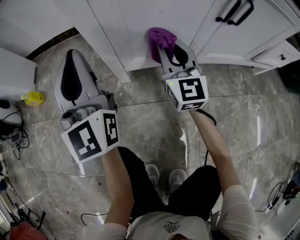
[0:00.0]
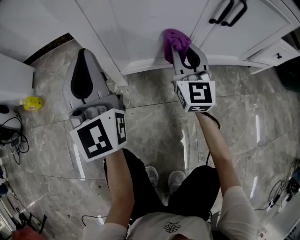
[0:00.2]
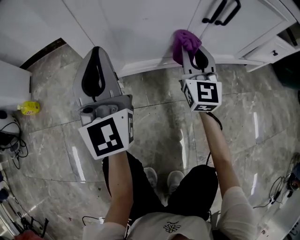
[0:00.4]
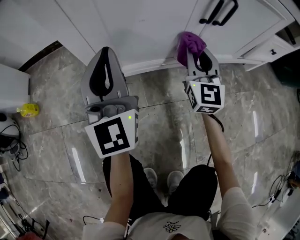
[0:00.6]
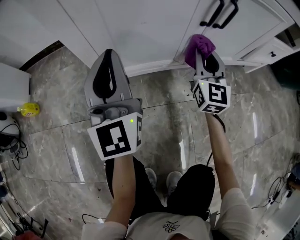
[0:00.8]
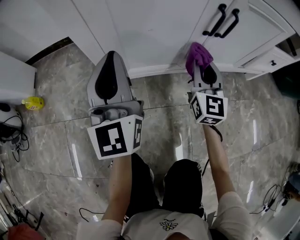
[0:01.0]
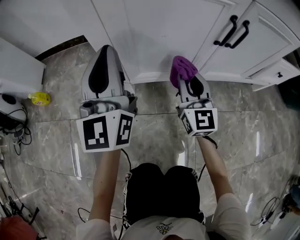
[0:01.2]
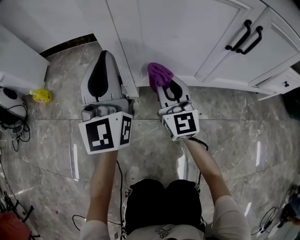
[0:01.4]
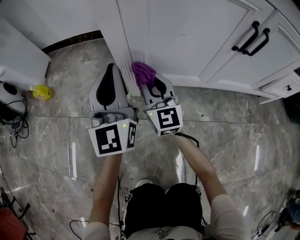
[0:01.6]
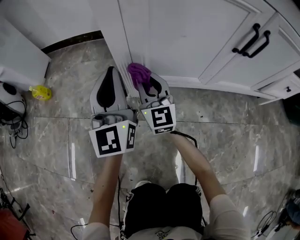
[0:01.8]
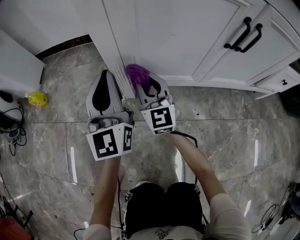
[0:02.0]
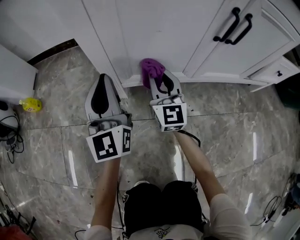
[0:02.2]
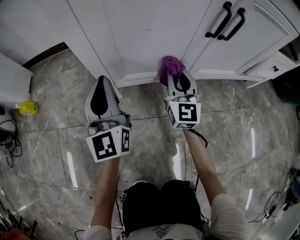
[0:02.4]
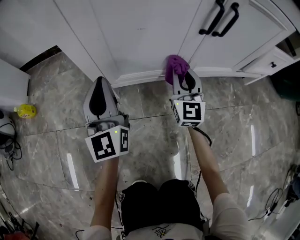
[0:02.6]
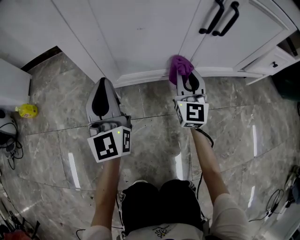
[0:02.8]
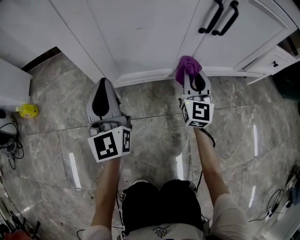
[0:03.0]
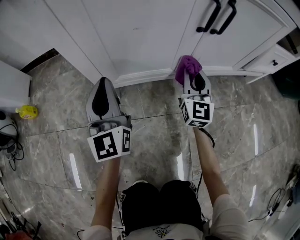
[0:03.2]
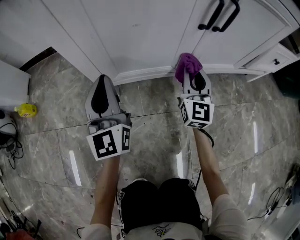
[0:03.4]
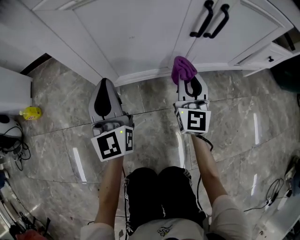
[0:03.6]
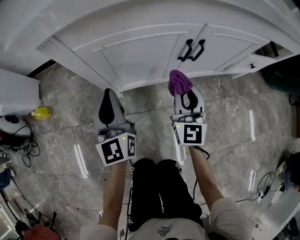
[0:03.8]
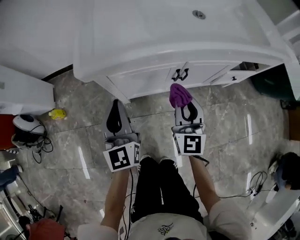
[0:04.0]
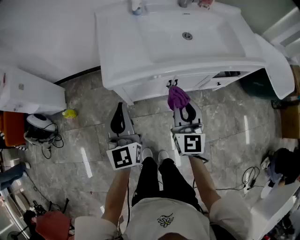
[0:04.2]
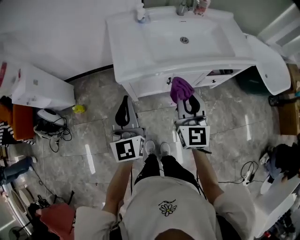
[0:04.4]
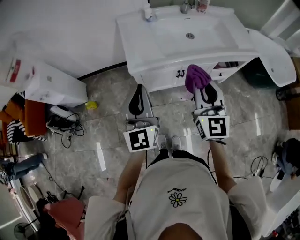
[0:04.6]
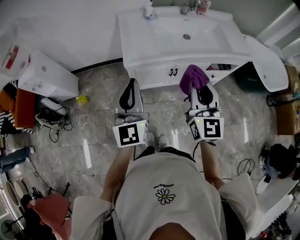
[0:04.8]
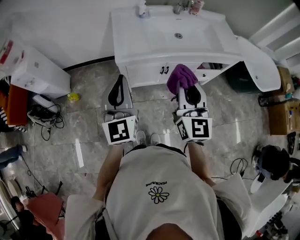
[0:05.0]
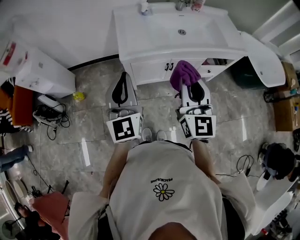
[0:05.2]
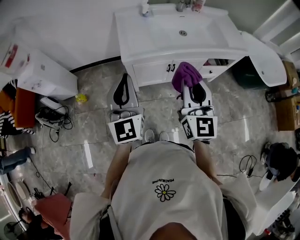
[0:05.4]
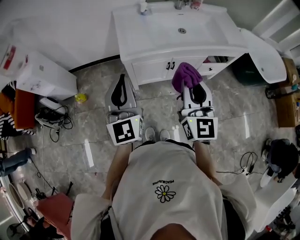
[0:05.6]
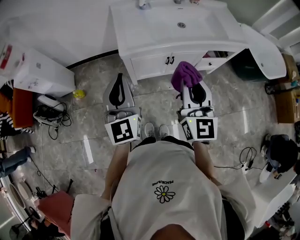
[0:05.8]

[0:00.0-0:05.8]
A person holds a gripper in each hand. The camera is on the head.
0:00.0 to 0:01.4: The right gripper reaches roughly 15 cm to the right, then returns. The left gripper moves roughly 10 cm to the right and comes back.
0:01.4 to 0:02.8: The left gripper is displaced downward by some 10 cm. Meanwhile the right gripper goes approximately 15 cm to the right, and rotates approximately 20 degrees.
0:02.8 to 0:04.4: Both grippers move upward, about 70 cm.
0:04.4 to 0:05.8: The grippers both shift backward and upward by some 15 cm.

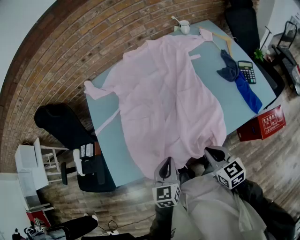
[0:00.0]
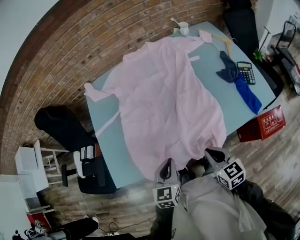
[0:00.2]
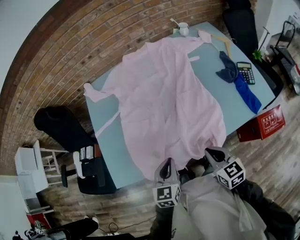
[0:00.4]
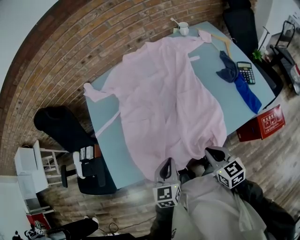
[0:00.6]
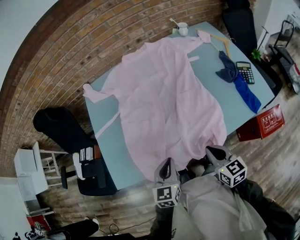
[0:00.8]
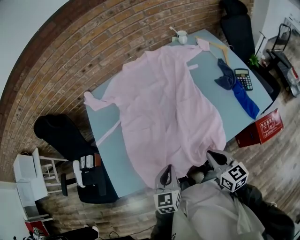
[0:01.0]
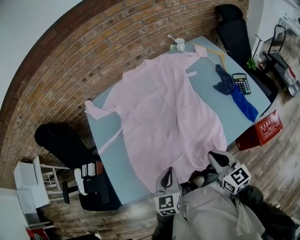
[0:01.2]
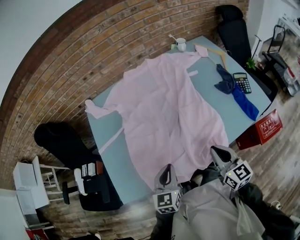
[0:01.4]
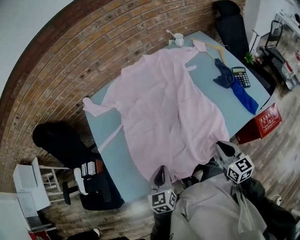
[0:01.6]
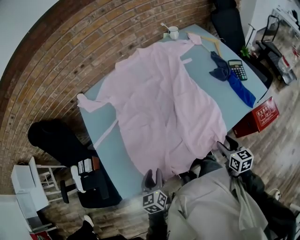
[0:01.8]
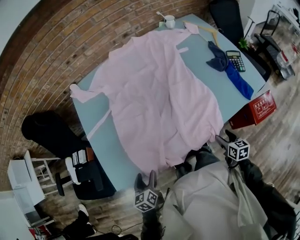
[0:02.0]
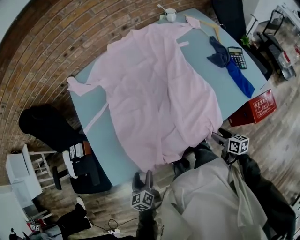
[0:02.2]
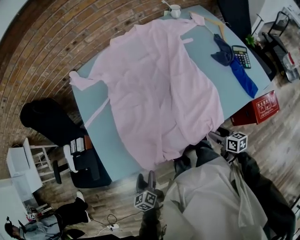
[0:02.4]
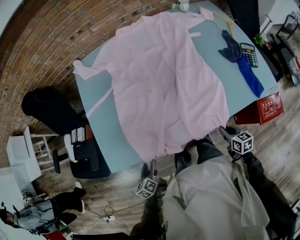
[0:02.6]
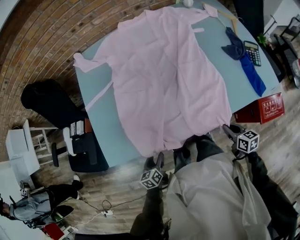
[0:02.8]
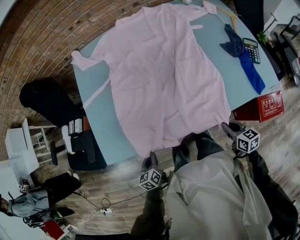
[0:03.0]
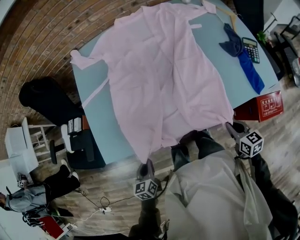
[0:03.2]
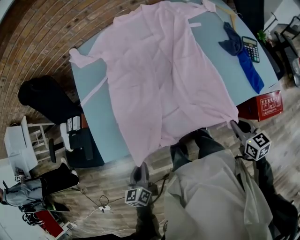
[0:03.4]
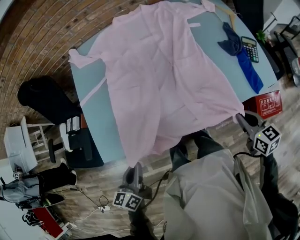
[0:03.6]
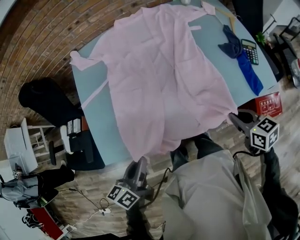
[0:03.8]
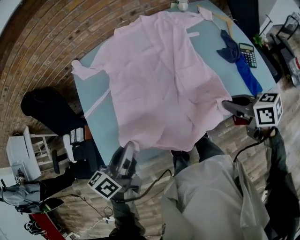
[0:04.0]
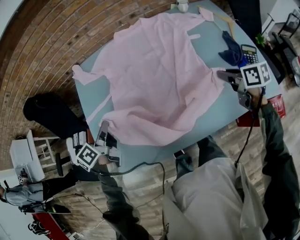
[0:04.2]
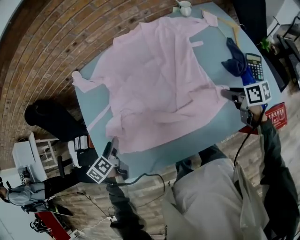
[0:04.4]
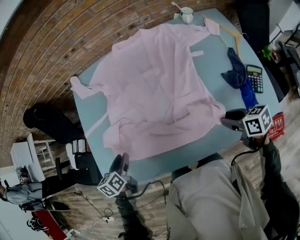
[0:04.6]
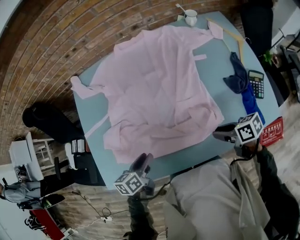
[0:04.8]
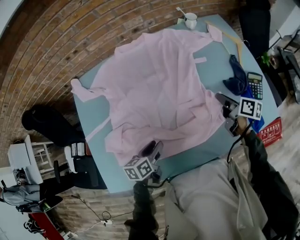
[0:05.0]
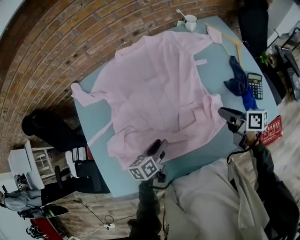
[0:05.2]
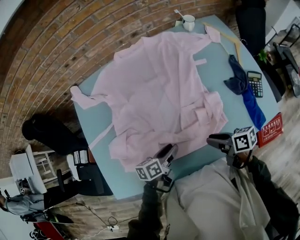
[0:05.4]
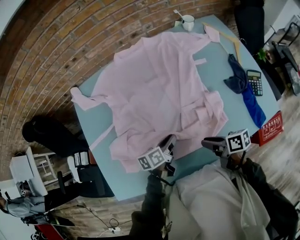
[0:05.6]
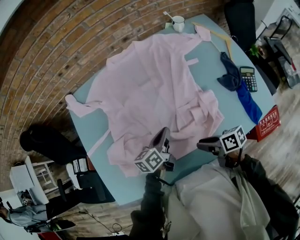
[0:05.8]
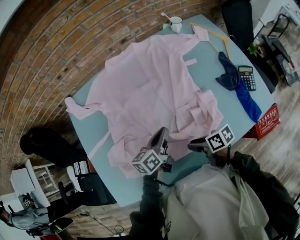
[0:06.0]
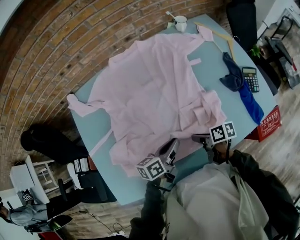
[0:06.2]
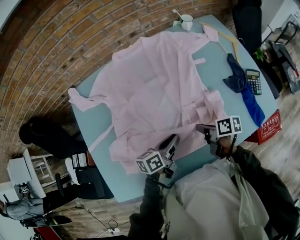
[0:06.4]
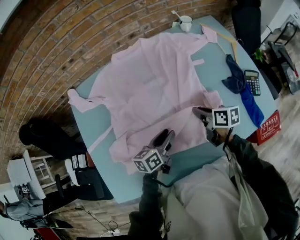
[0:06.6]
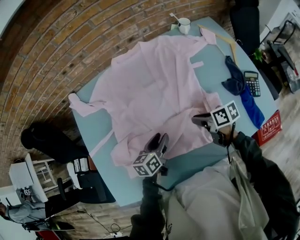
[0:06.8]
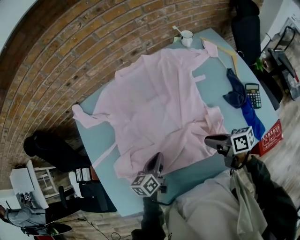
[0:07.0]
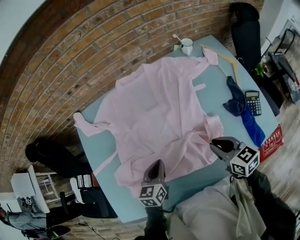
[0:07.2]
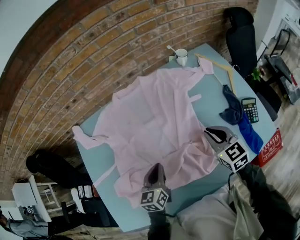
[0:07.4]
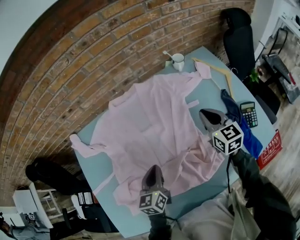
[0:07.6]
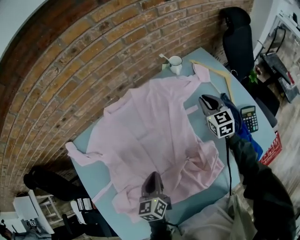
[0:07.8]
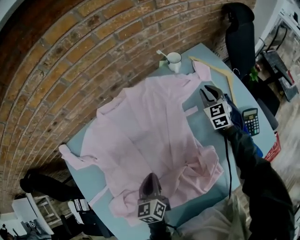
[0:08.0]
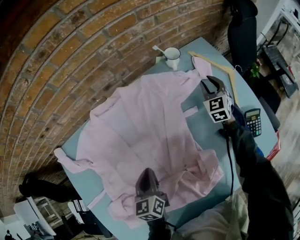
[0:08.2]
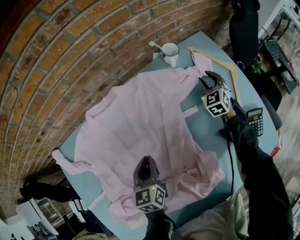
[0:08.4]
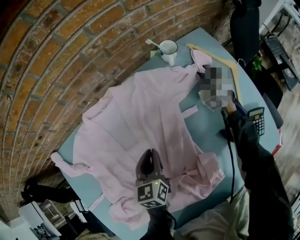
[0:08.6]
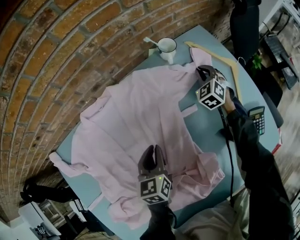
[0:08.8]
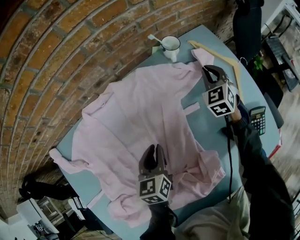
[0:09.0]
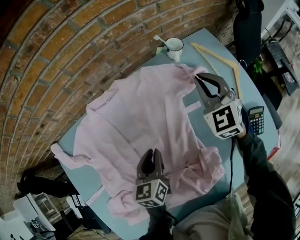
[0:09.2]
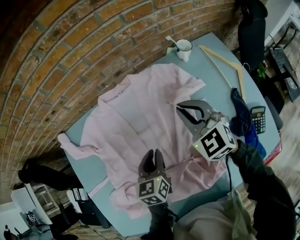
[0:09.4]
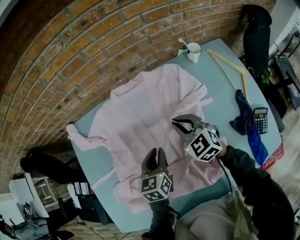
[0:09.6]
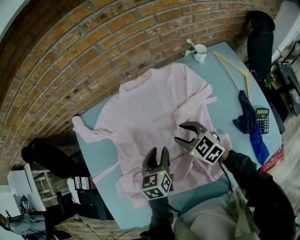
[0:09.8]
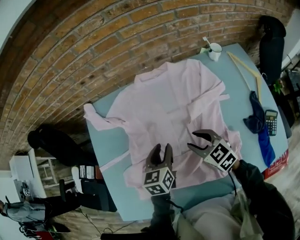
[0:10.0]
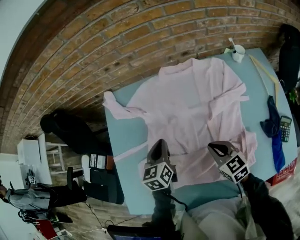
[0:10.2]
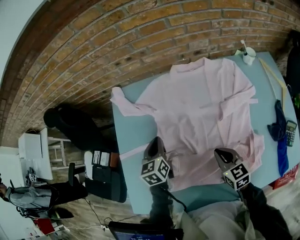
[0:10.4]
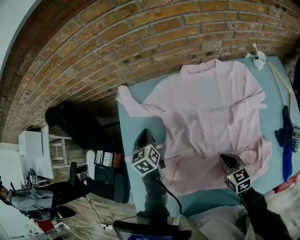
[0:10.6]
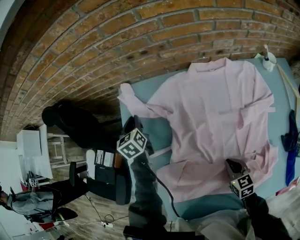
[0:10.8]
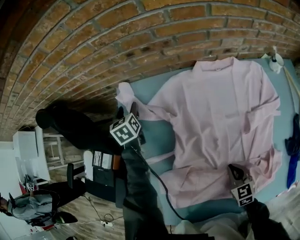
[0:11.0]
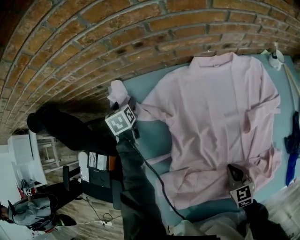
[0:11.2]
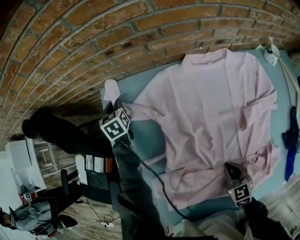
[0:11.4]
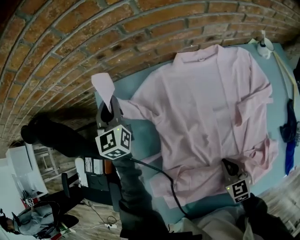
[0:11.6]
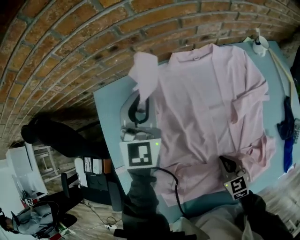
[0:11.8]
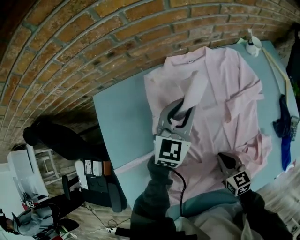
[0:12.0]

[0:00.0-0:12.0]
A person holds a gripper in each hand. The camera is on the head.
0:00.0 to 0:01.6: The left gripper travels to the left by some 5 cm.
0:01.6 to 0:03.0: The left gripper shifts roughly 25 cm downward, backward and to the left, changes its angle by approximately 30 degrees, and opens, then closes once more, while the right gripper goes about 15 cm downward, to the right and backward, changes its angle by some 30 degrees, and opens, then closes again.
0:03.0 to 0:04.4: The grippers both shift forward and upward by some 25 cm. The left gripper opens its fingers.
0:04.4 to 0:06.0: The left gripper moves about 30 cm, swivels about 40 degrees, and closes its fingers. The right gripper ends up roughly 20 cm from where it was.
0:06.0 to 0:07.6: The left gripper is displaced forward by some 5 cm, rotates approximately 30 degrees, and opens, then closes once more. Meanwhile the right gripper swings forward and backward, some 25 cm each way, with 2 reversals, turns by approximately 70 degrees, and closes.
0:07.6 to 0:09.0: The right gripper heads forward and downward, covering about 25 cm, rotates approximately 40 degrees, and opens, then closes again. Meanwhile the left gripper shifts about 20 cm forward.
0:09.0 to 0:10.4: The right gripper moves approximately 10 cm upward and comes back, rotates some 50 degrees, and opens, then closes again, while the left gripper changes place by roughly 35 cm, and turns by some 30 degrees.
0:10.4 to 0:12.0: The left gripper swings up and down, approximately 25 cm each way, with 2 reversals, turns by some 50 degrees, and opens and closes again. Meanwhile the right gripper goes approximately 5 cm downward.

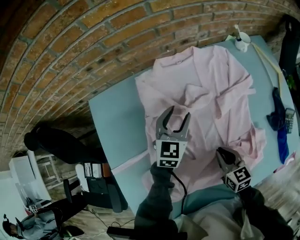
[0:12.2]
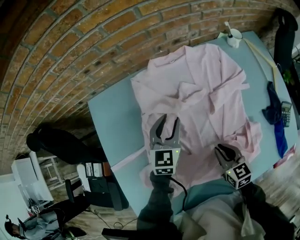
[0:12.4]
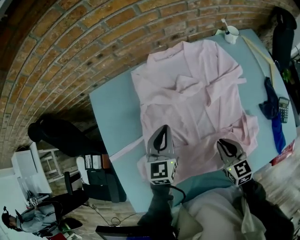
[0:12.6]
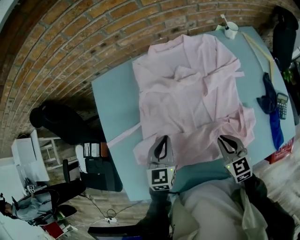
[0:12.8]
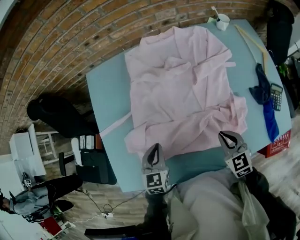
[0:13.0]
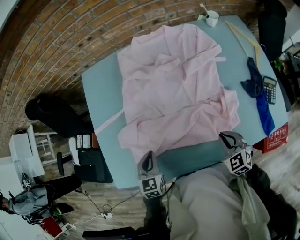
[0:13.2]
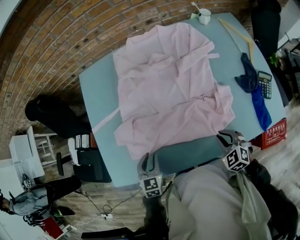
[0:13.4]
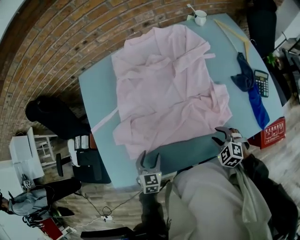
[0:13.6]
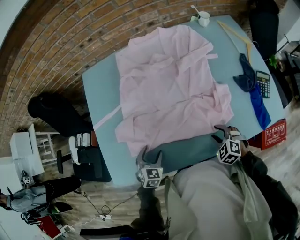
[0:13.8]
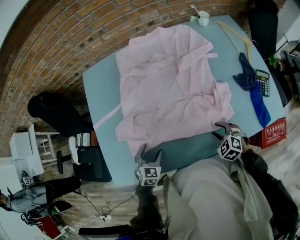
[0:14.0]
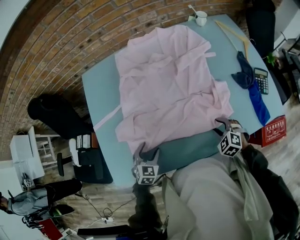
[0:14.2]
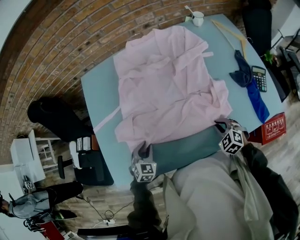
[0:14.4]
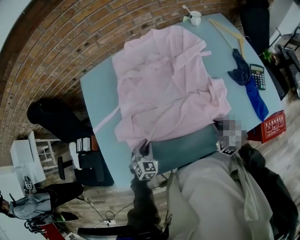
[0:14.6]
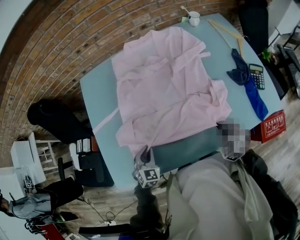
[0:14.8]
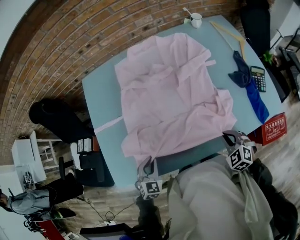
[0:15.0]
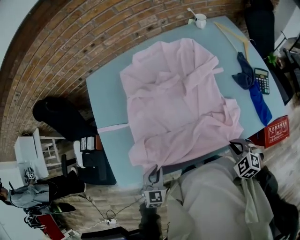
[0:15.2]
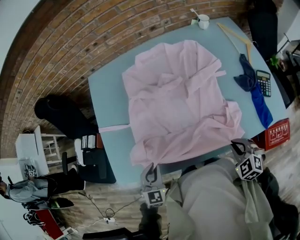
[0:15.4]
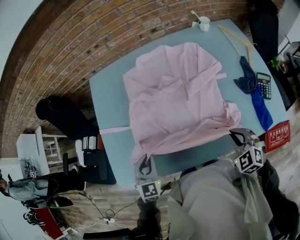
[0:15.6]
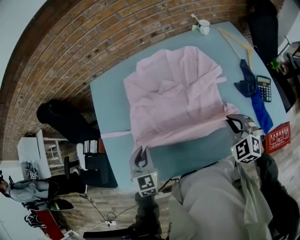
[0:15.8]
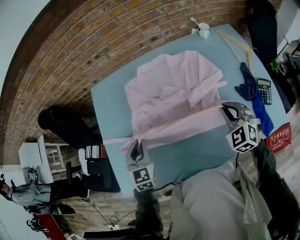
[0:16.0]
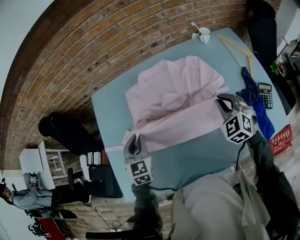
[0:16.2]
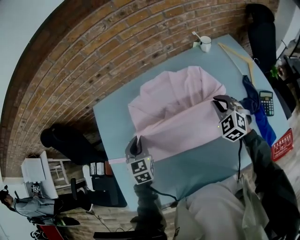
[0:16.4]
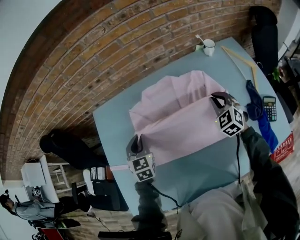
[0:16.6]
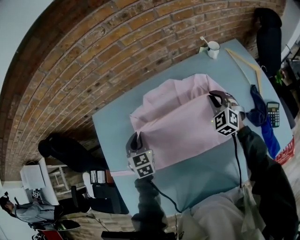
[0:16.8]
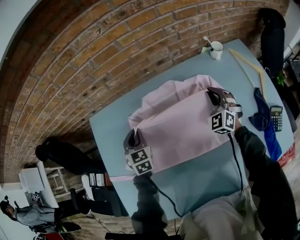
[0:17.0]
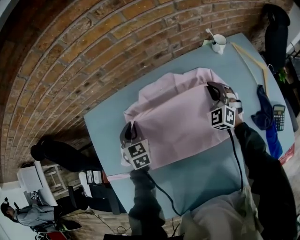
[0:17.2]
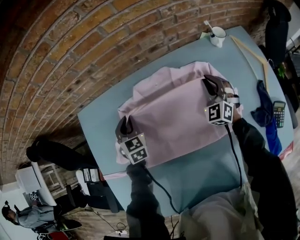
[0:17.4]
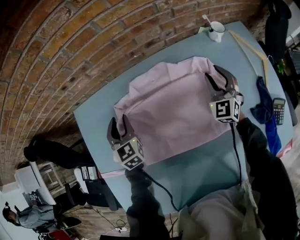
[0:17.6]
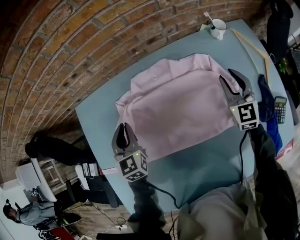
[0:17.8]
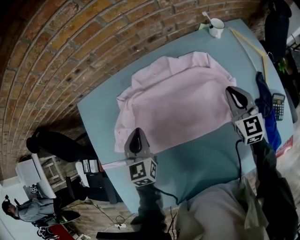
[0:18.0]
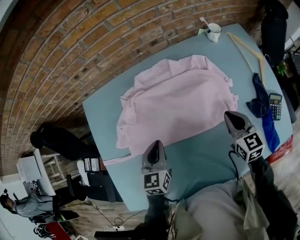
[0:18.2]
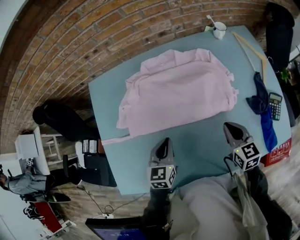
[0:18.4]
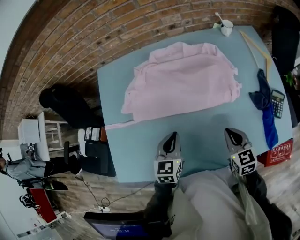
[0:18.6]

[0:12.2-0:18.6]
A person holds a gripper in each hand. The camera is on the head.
0:12.2 to 0:13.8: The right gripper shifts approximately 25 cm backward and to the right, rolls counterclockwise, seen from behind, by some 50 degrees, and opens its fingers, while the left gripper travels backward by about 40 cm, changes its angle by roughly 30 degrees, and closes, then reopens.
0:13.8 to 0:15.4: The two grippers go about 10 cm upward and backward. The right gripper closes. Meanwhile the left gripper closes up.
0:15.4 to 0:17.0: Both grippers are carried forward, roughly 50 cm. The right gripper tips its fingers upward by some 30 degrees.
0:17.0 to 0:18.6: The left gripper shifts some 30 cm backward and to the right, changes its angle by roughly 20 degrees, and opens and closes again; the right gripper shifts approximately 35 cm backward, rolls clockwise, seen from behind, by roughly 40 degrees, and opens, then closes once more.
